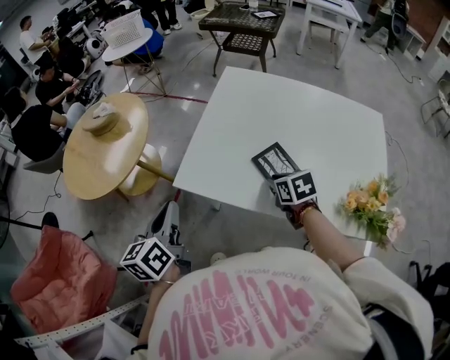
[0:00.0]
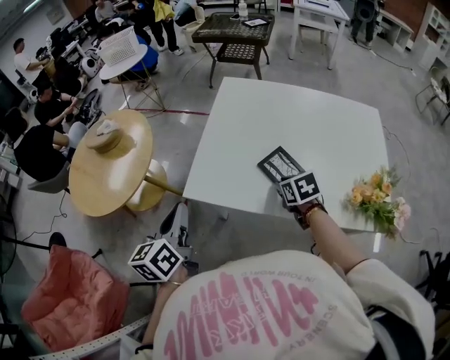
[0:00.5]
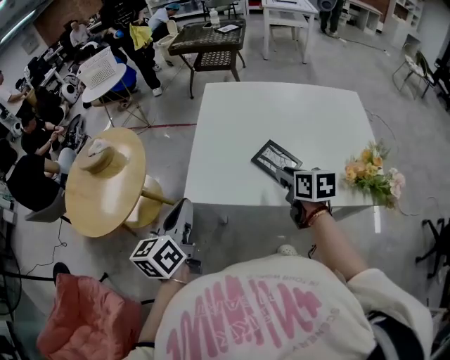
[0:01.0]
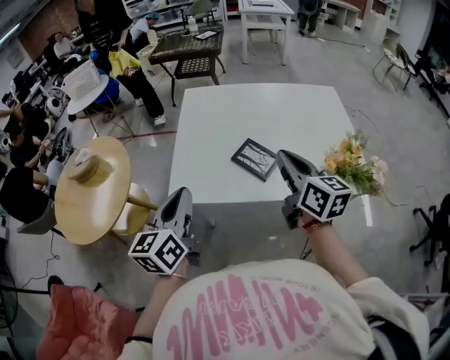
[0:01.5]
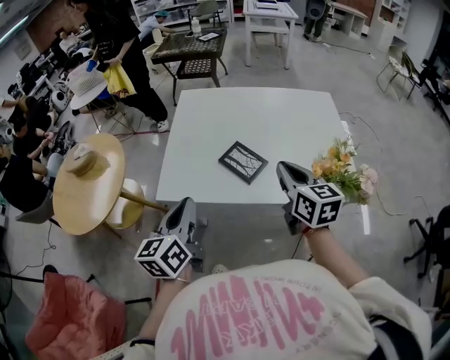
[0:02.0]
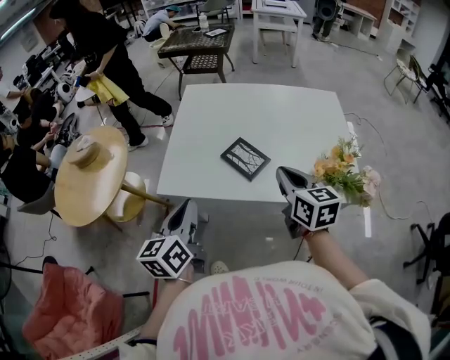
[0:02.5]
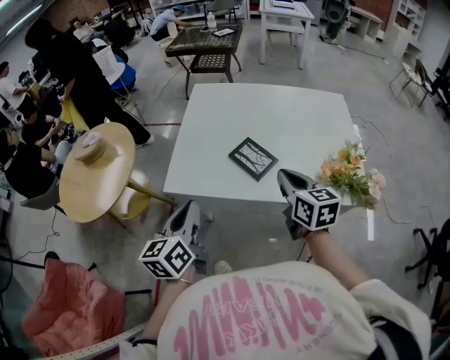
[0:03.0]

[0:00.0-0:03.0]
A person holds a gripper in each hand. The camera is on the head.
0:00.0 to 0:01.5: The left gripper heads upward, covering some 5 cm, and swivels roughly 30 degrees, while the right gripper goes about 20 cm upward, and angles its fingers upward, by roughly 40 degrees.
0:01.5 to 0:03.0: The left gripper goes roughly 5 cm backward; the right gripper shifts approximately 5 cm downward.

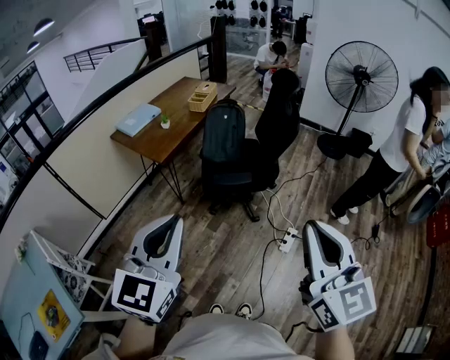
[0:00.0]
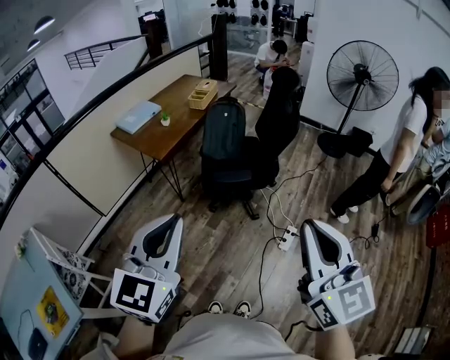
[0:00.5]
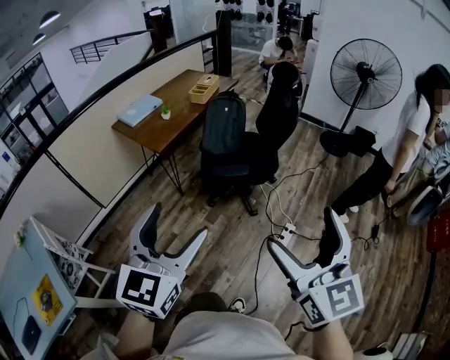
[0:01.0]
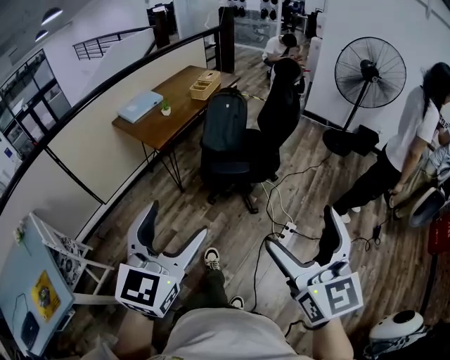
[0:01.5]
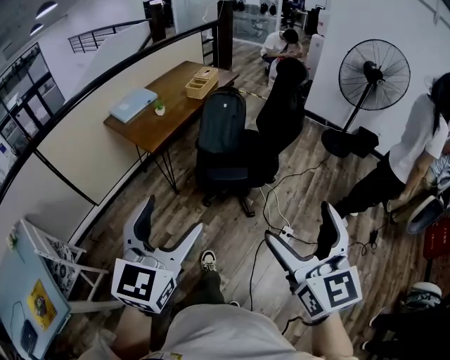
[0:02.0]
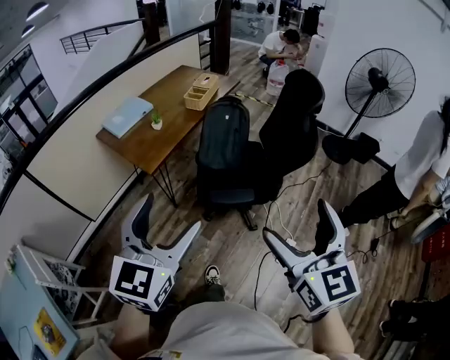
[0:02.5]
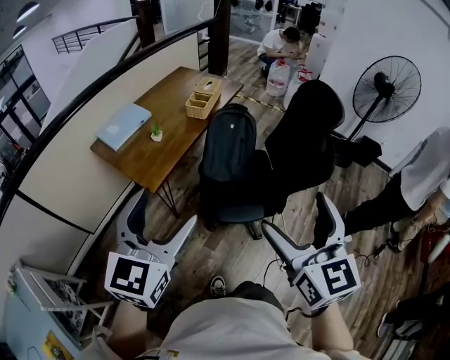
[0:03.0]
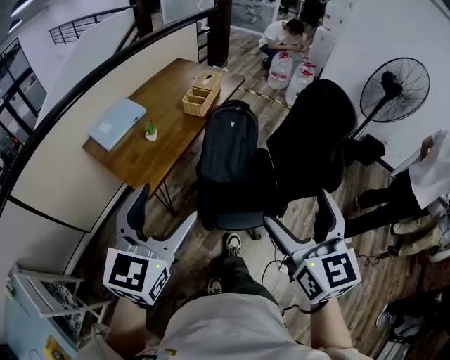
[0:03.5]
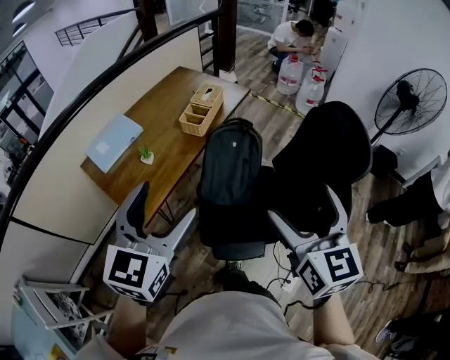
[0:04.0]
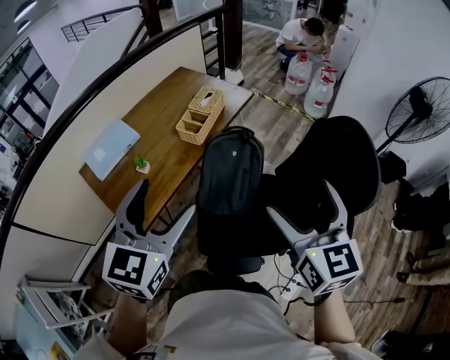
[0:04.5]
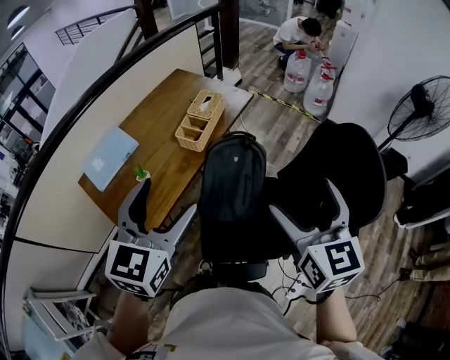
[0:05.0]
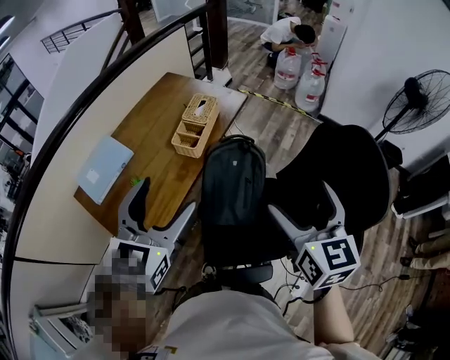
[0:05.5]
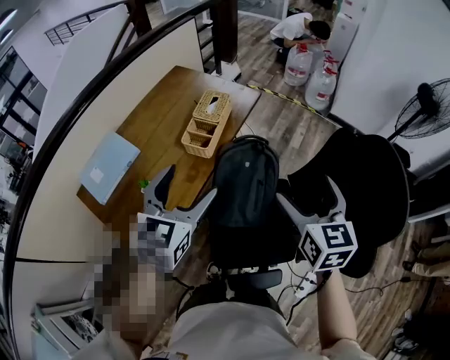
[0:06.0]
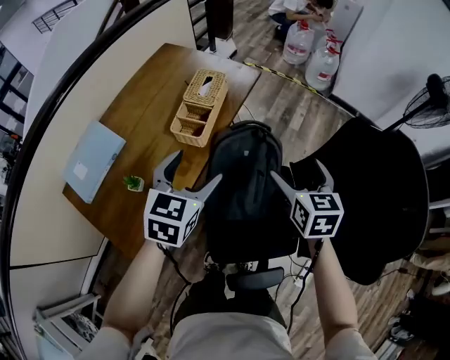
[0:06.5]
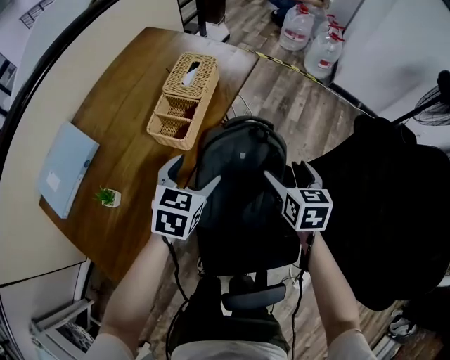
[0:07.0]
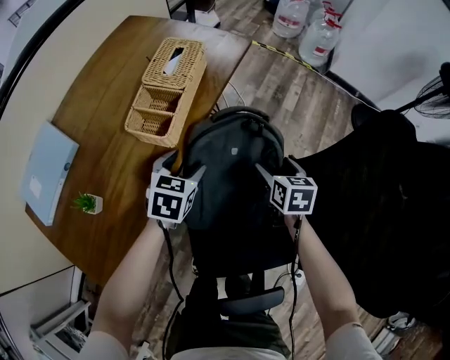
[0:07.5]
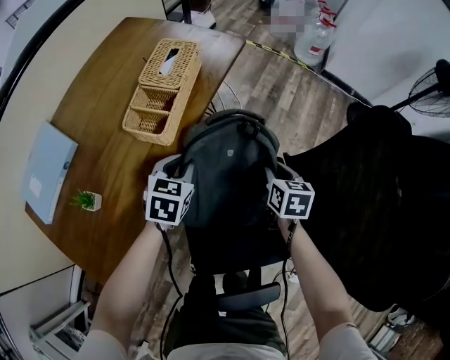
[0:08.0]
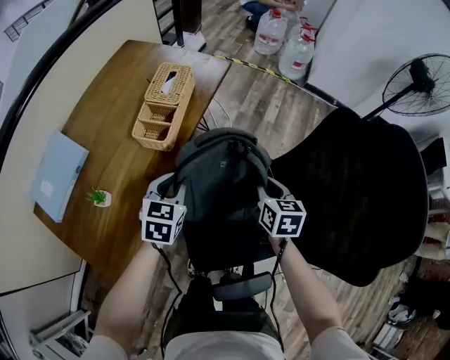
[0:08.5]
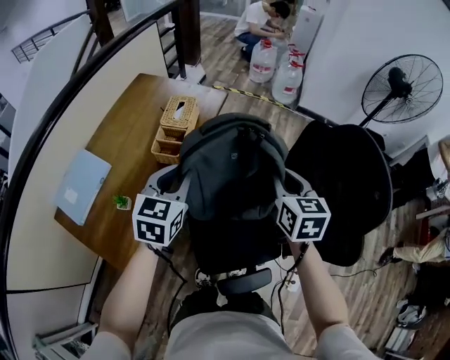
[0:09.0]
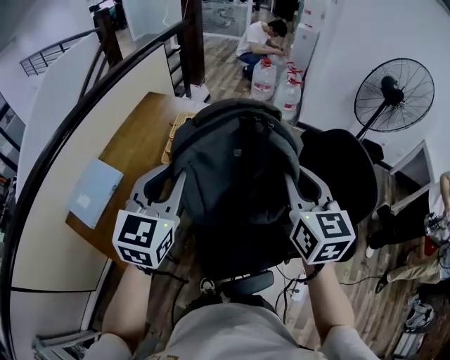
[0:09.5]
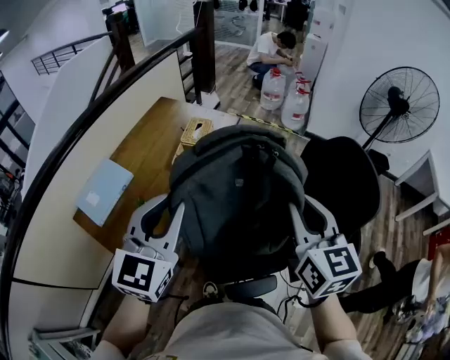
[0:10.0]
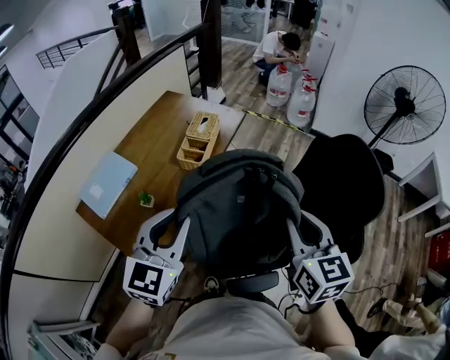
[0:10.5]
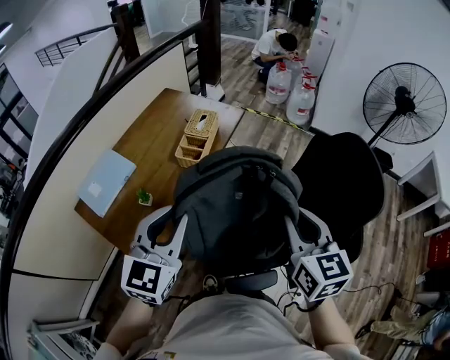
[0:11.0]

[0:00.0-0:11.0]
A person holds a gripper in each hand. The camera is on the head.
0:00.0 to 0:02.0: Both grippers move forward and downward, approximately 10 cm. The left gripper opens its fingers; the right gripper opens up.
0:02.0 to 0:03.5: The two grippers go roughly 35 cm forward.
0:03.5 to 0:05.5: Both grippers move forward, approximately 35 cm.
0:05.5 to 0:07.5: Both grippers move downward and forward, some 50 cm. The left gripper tilts its fingers about 30 degrees downward. Meanwhile the right gripper points its fingers roughly 30 degrees further downward.
0:07.5 to 0:09.0: The two grippers go about 35 cm upward. The right gripper swivels about 20 degrees, and closes up, while the left gripper changes its angle by some 20 degrees, and closes its fingers.
0:09.0 to 0:11.0: Both grippers travel together backward and upward, some 20 cm.

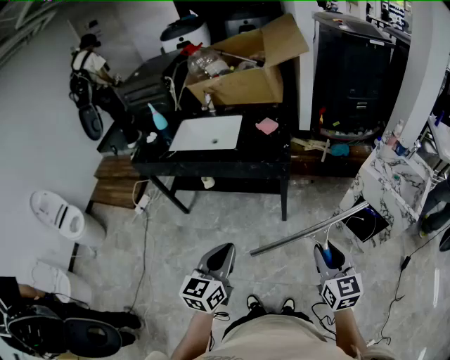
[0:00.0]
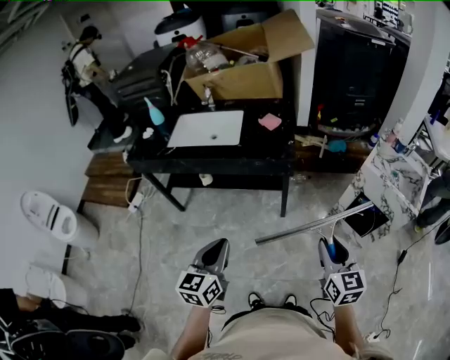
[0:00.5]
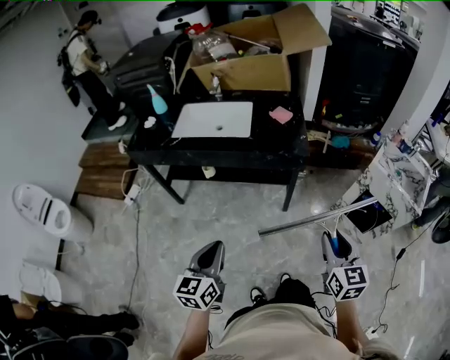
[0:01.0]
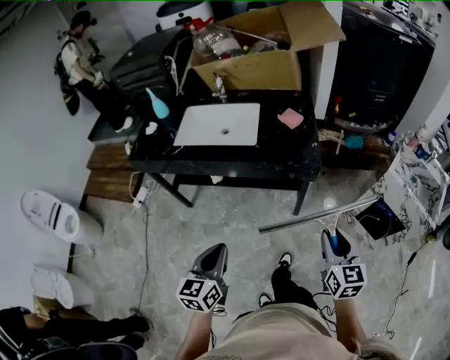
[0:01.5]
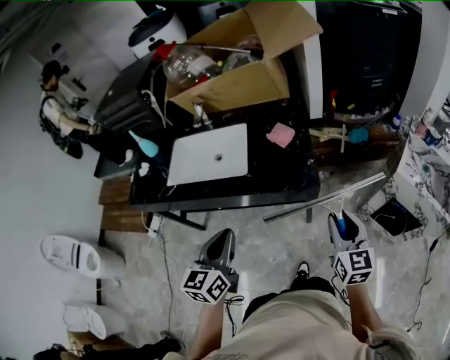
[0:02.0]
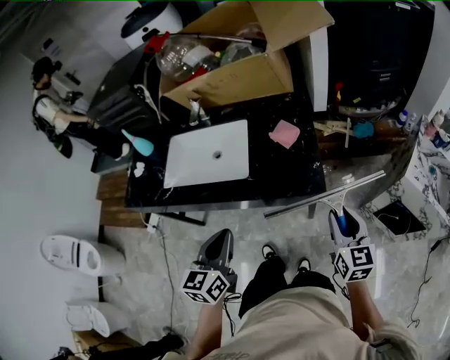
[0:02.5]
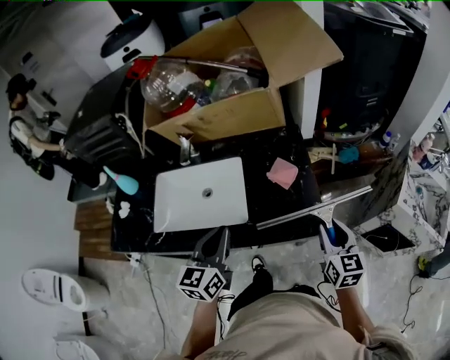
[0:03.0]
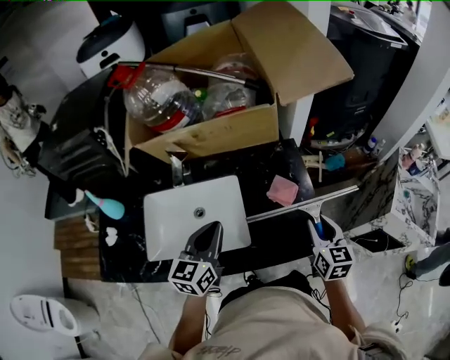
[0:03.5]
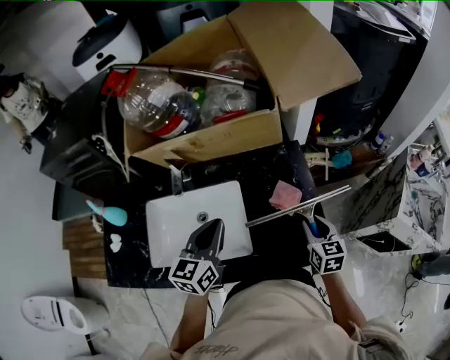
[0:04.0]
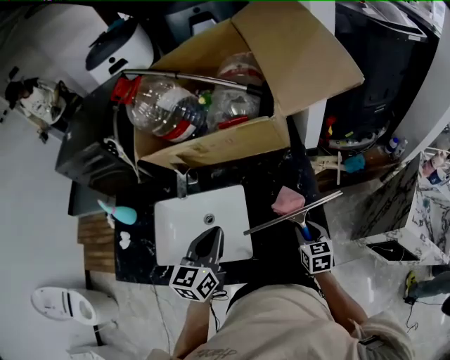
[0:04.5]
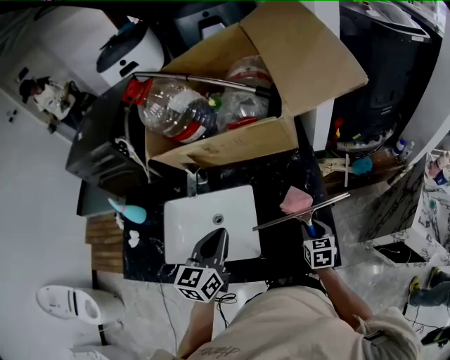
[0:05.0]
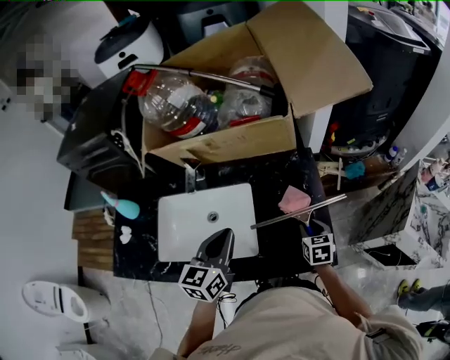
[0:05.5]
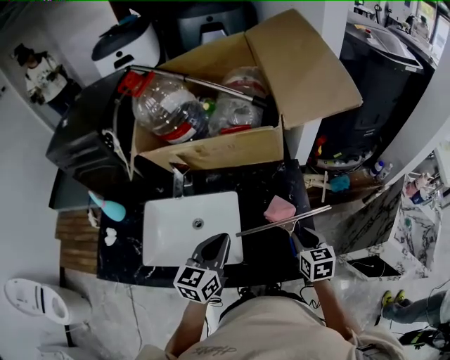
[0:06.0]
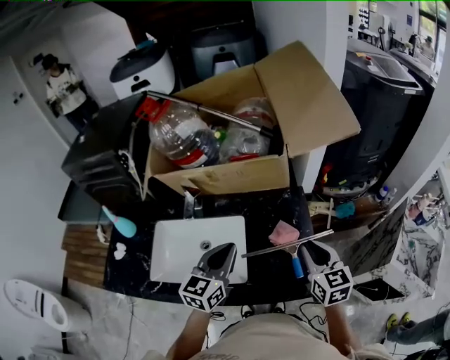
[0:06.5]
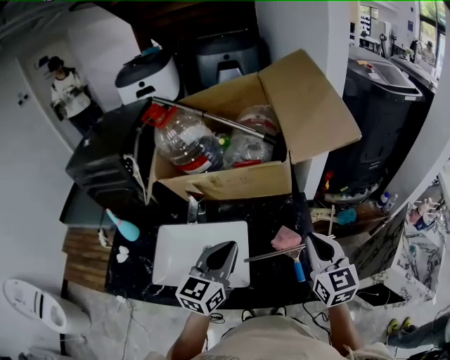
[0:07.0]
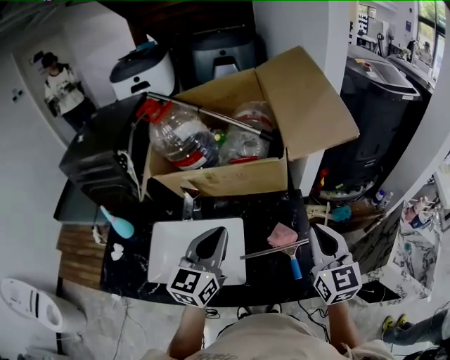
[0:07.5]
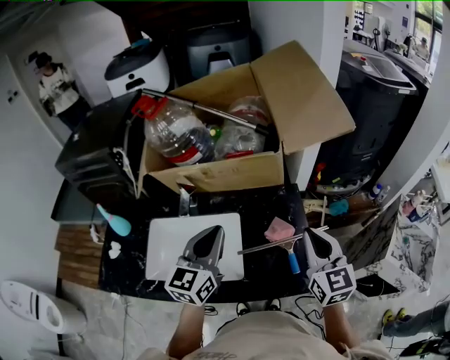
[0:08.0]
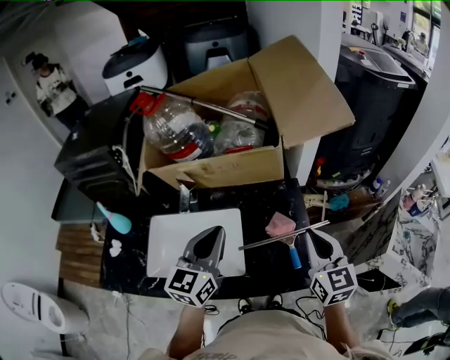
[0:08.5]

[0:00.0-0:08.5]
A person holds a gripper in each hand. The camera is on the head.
0:00.0 to 0:02.0: The left gripper moves forward and to the left, approximately 30 cm; the right gripper shifts approximately 25 cm forward.
0:02.0 to 0:04.0: The right gripper is displaced forward and to the left by approximately 30 cm. The left gripper heads forward, covering some 35 cm.
0:04.0 to 0:06.5: The right gripper heads upward, covering about 10 cm. Meanwhile the left gripper changes place by about 5 cm.
0:06.5 to 0:08.5: The two grippers go about 5 cm upward.

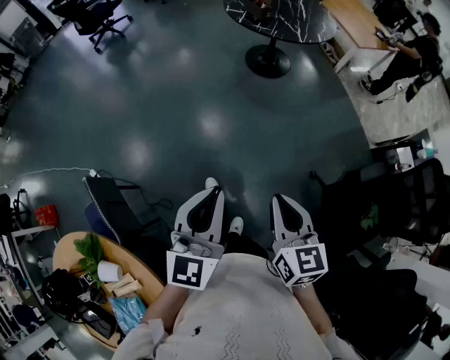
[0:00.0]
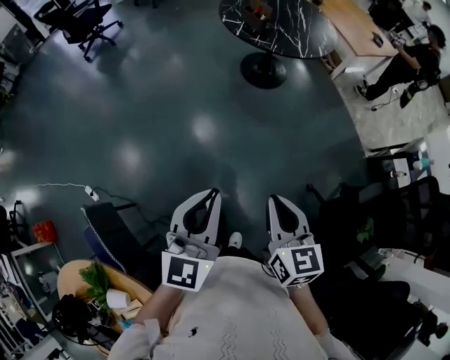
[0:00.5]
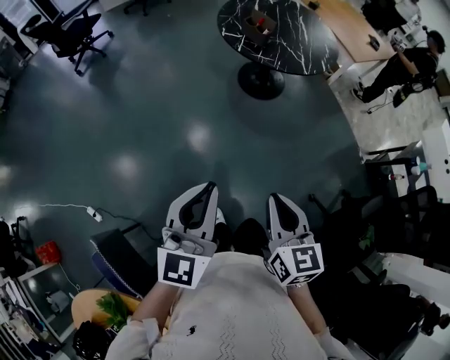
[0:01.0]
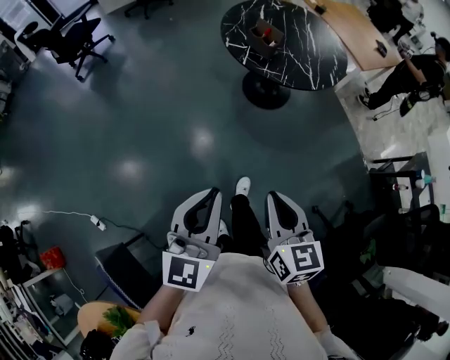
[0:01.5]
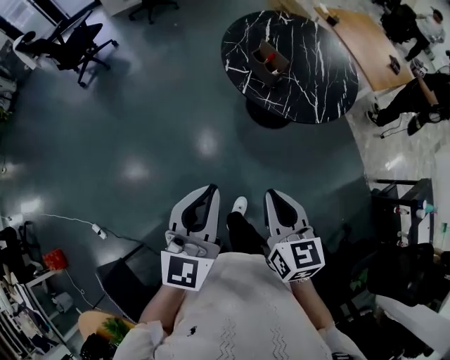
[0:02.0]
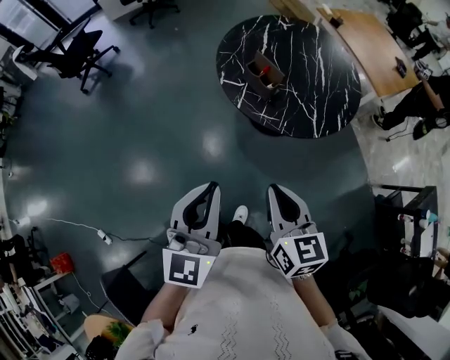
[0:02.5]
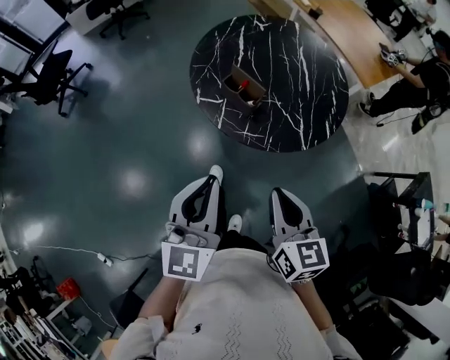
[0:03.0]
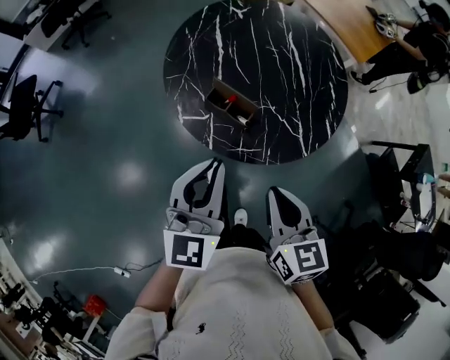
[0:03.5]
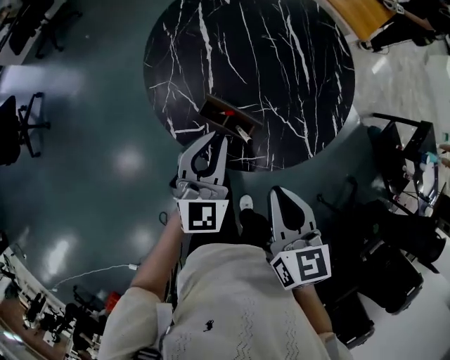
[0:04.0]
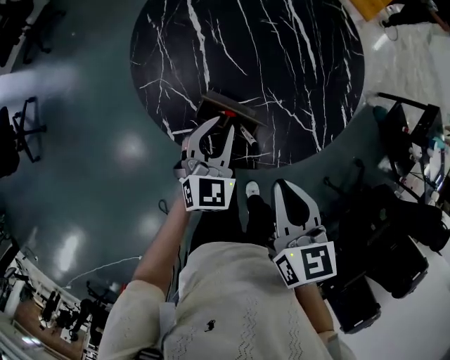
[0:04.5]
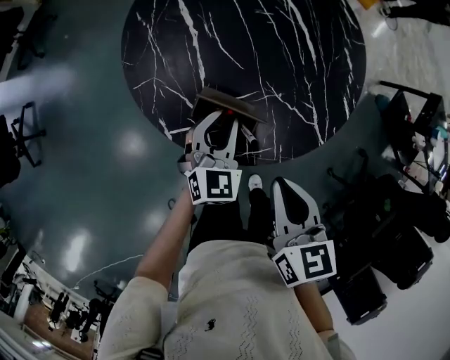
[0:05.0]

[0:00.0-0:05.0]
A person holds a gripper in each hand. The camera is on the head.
0:00.0 to 0:02.5: The two grippers travel together, forward, some 60 cm.
0:02.5 to 0:05.0: The right gripper shifts by approximately 40 cm, and swivels some 40 degrees; the left gripper moves roughly 60 cm, and swivels approximately 50 degrees.
